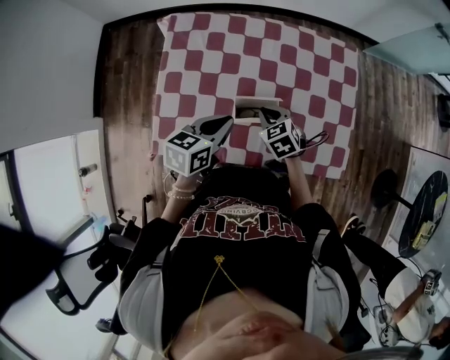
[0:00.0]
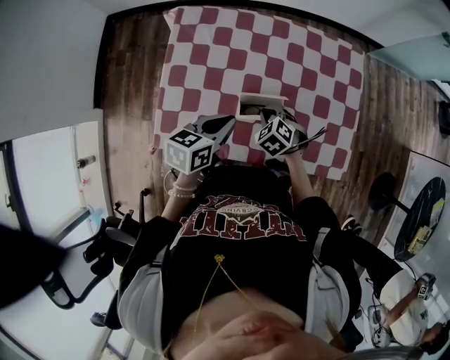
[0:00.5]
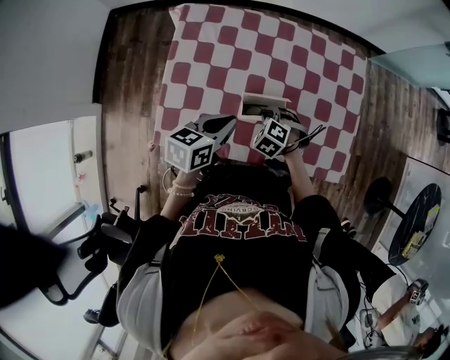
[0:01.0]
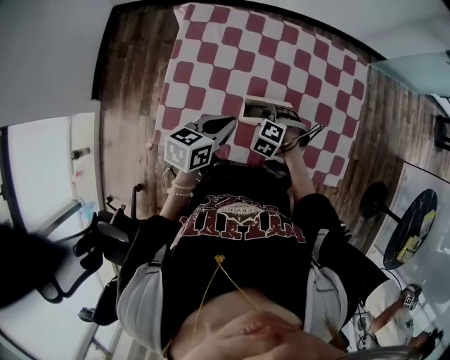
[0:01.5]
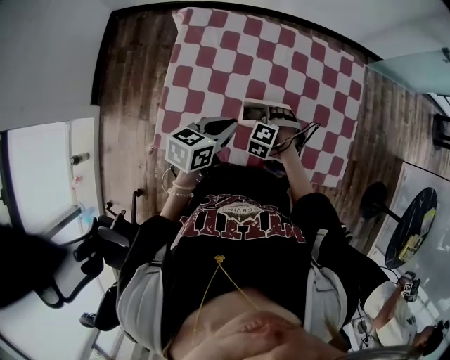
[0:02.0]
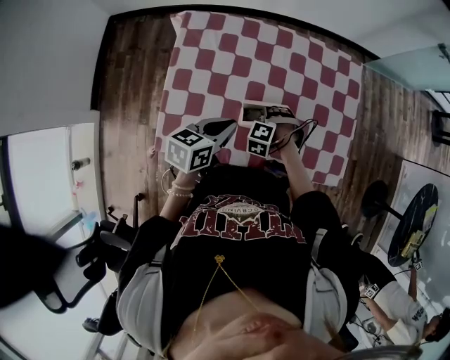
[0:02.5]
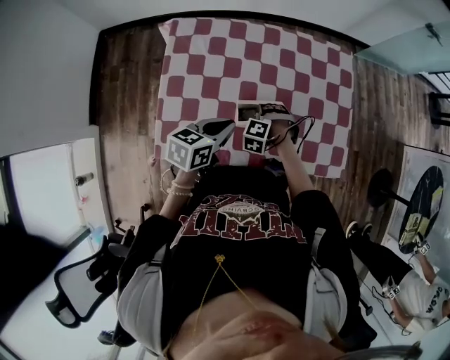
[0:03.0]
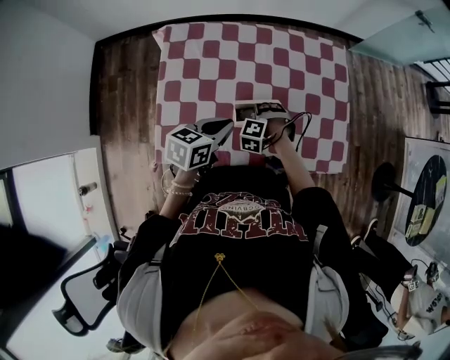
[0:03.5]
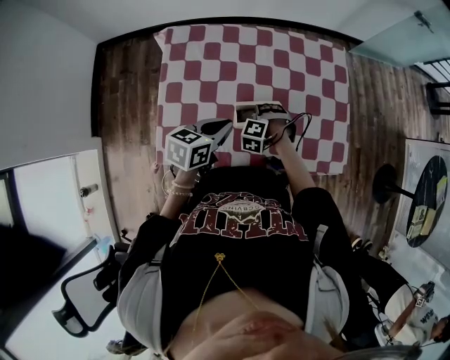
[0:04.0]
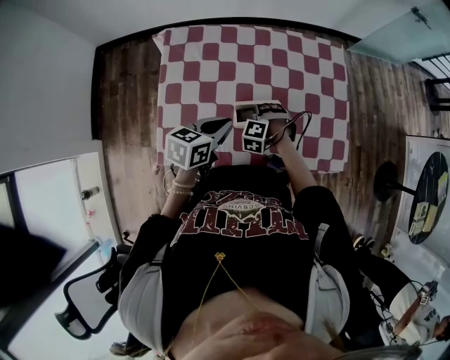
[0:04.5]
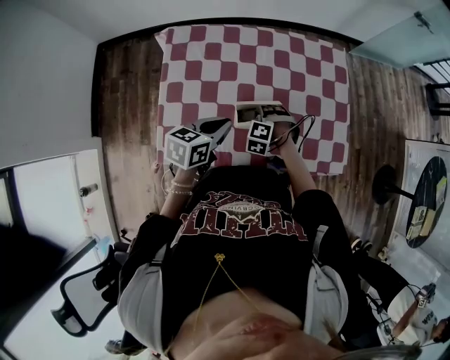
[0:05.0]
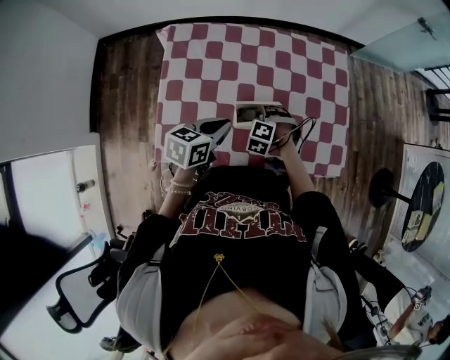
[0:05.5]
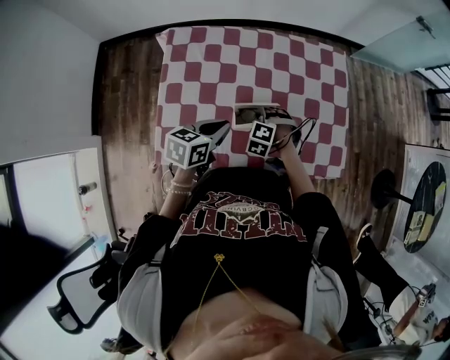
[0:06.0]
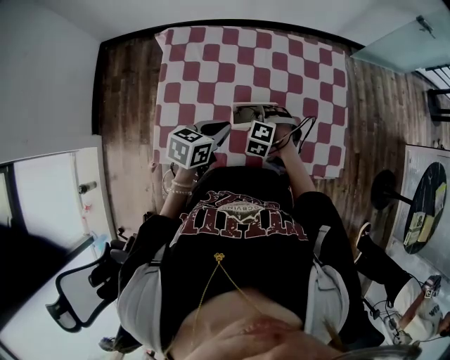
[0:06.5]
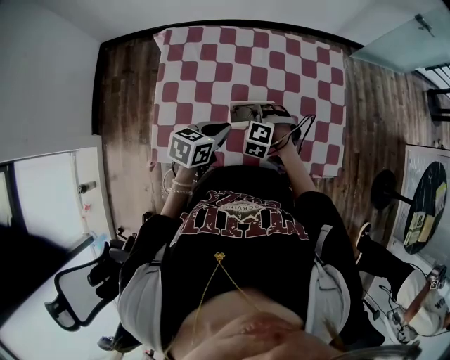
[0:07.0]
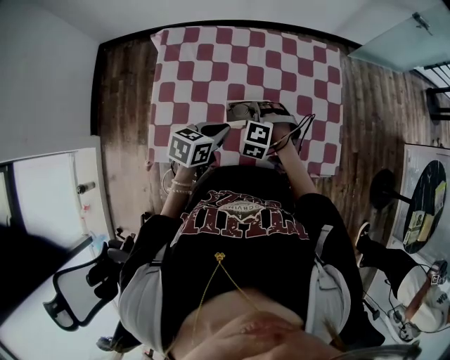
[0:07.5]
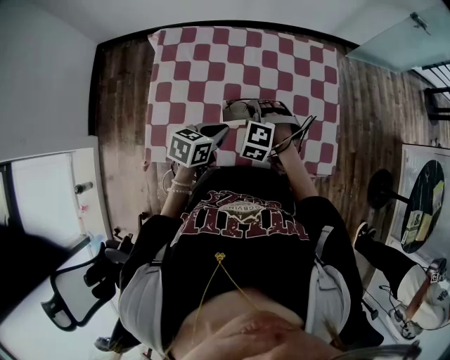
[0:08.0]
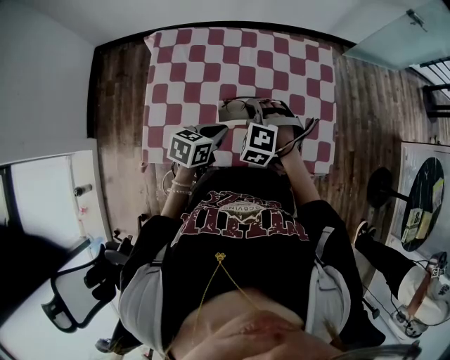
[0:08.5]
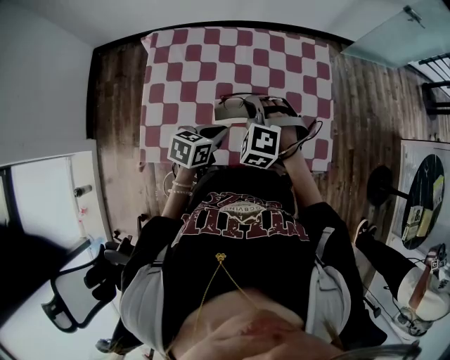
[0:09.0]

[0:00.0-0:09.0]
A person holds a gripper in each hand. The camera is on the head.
0:00.0 to 0:02.0: The right gripper shifts approximately 5 cm downward, and rolls counterclockwise, seen from behind, by approximately 50 degrees.
0:02.0 to 0:04.5: The grippers move only a little.
0:04.5 to 0:07.0: The right gripper travels upward by about 5 cm.
0:07.0 to 0:09.0: The left gripper shifts by roughly 5 cm. Meanwhile the right gripper goes approximately 15 cm upward.

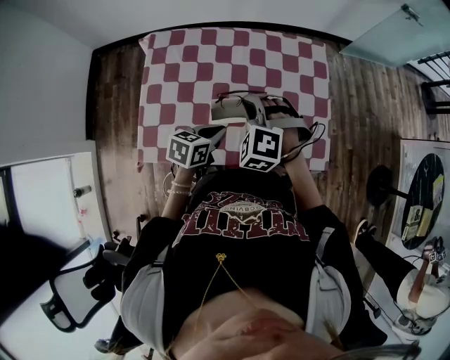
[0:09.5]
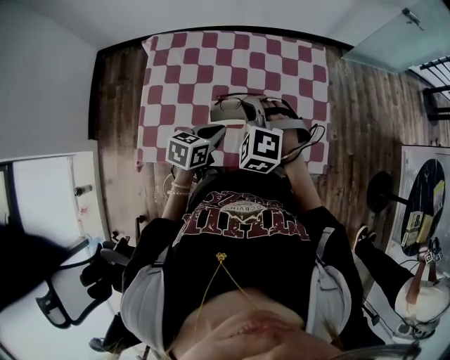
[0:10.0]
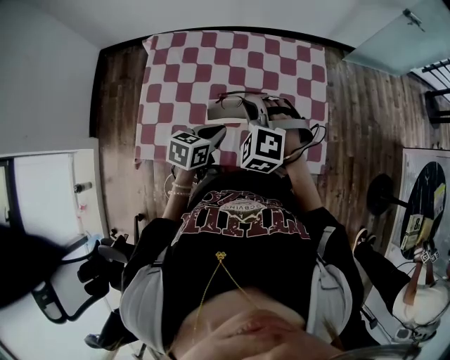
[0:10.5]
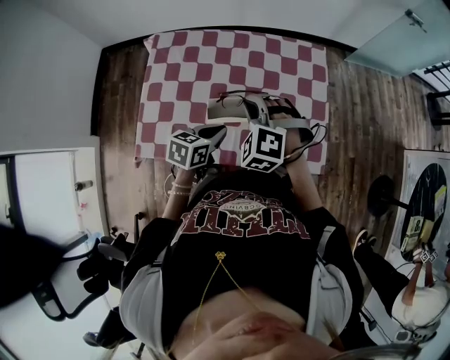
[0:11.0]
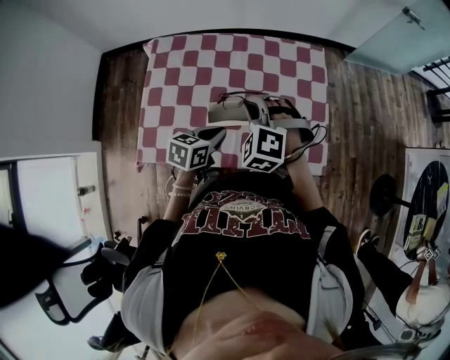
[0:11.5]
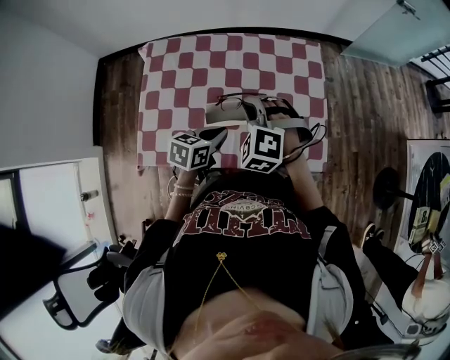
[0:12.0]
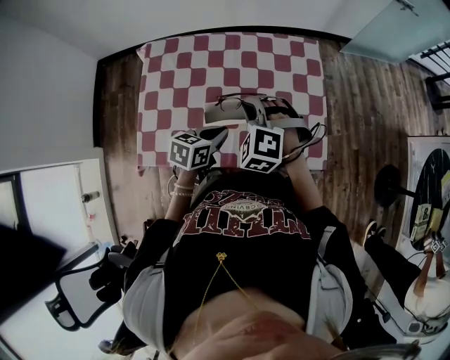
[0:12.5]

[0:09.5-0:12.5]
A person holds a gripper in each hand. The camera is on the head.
0:09.5 to 0:12.5: There are only small adjustments of the grippers.

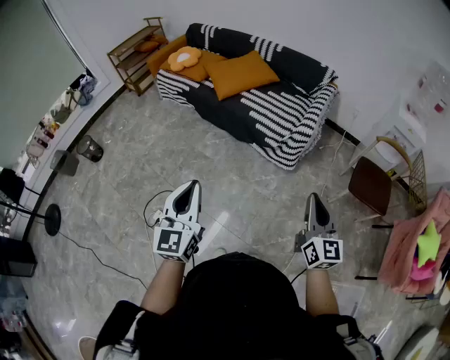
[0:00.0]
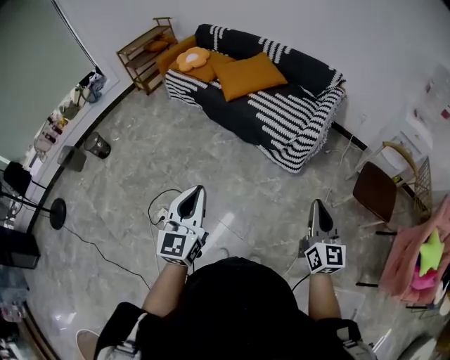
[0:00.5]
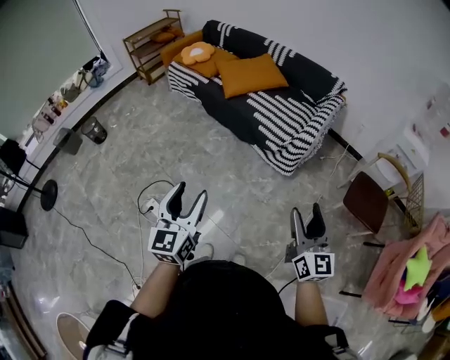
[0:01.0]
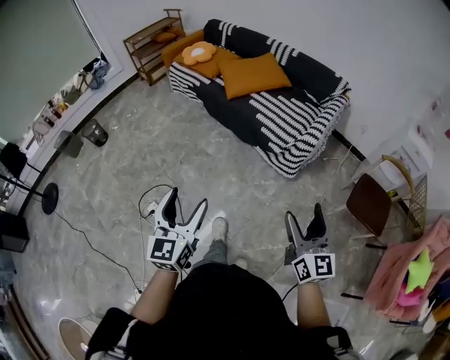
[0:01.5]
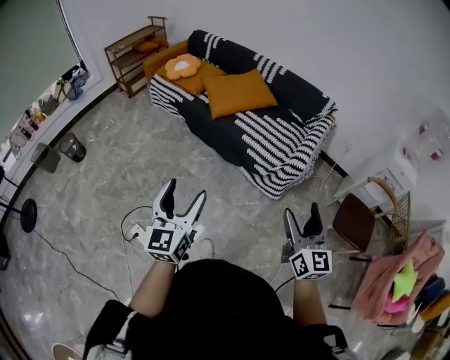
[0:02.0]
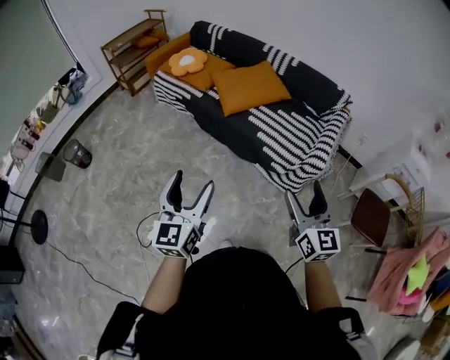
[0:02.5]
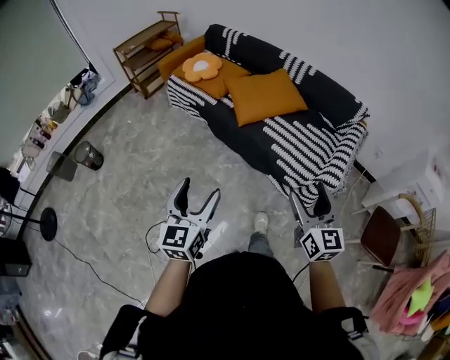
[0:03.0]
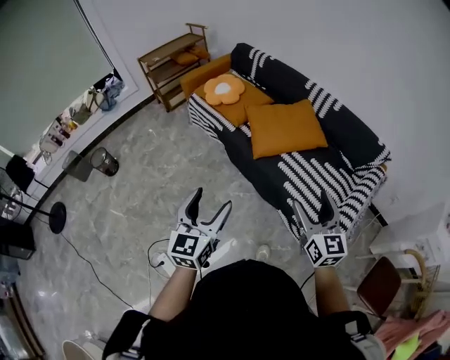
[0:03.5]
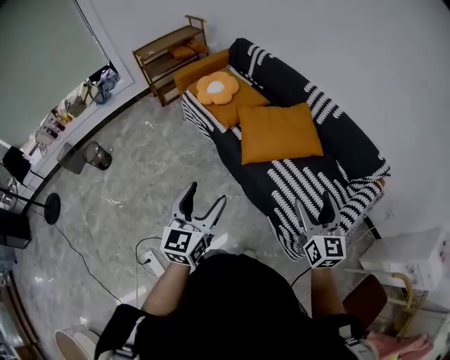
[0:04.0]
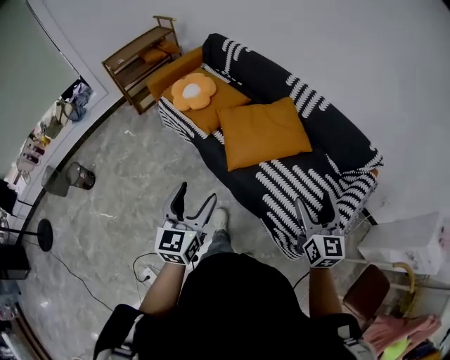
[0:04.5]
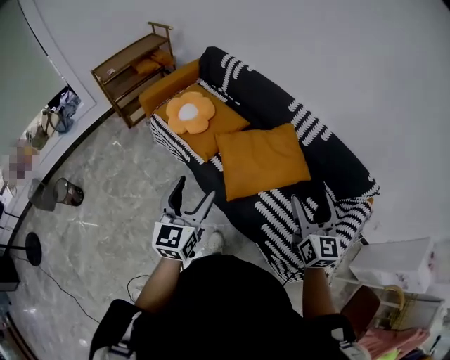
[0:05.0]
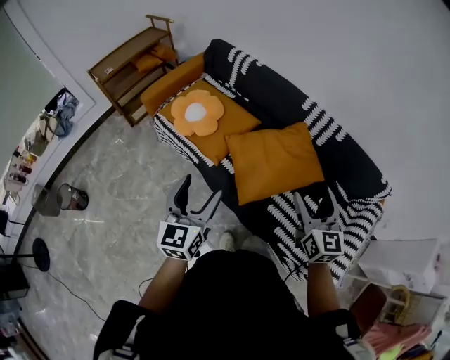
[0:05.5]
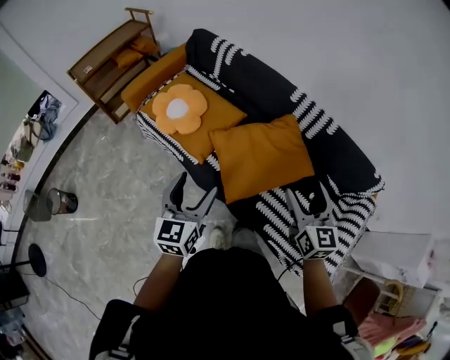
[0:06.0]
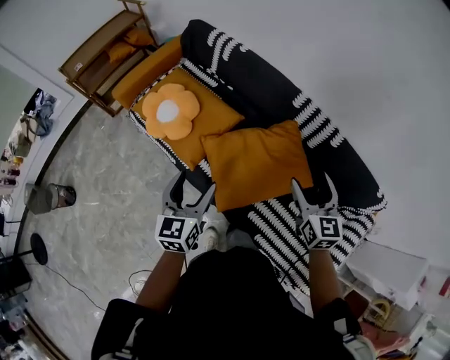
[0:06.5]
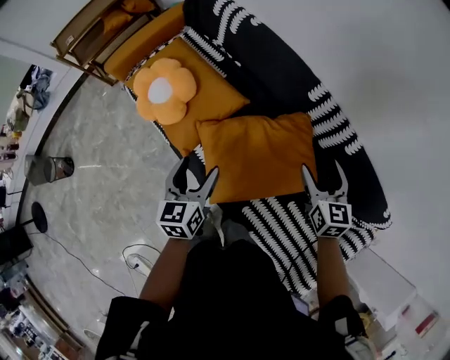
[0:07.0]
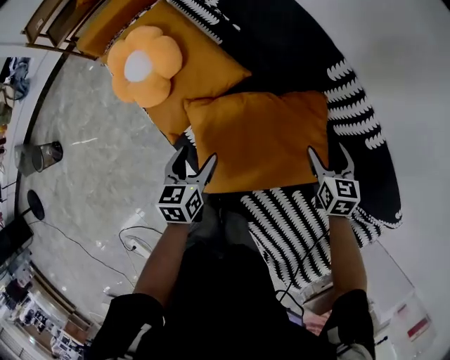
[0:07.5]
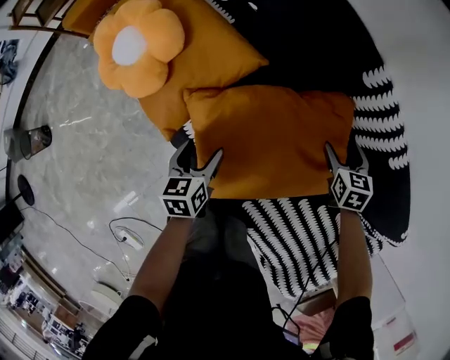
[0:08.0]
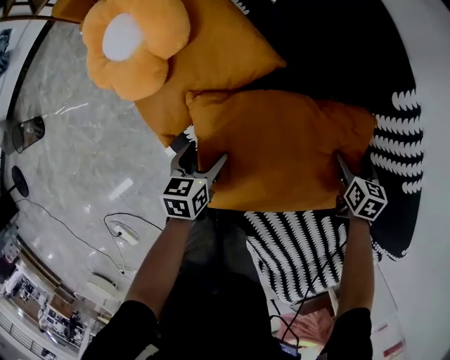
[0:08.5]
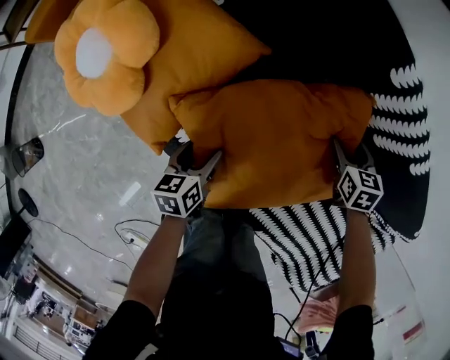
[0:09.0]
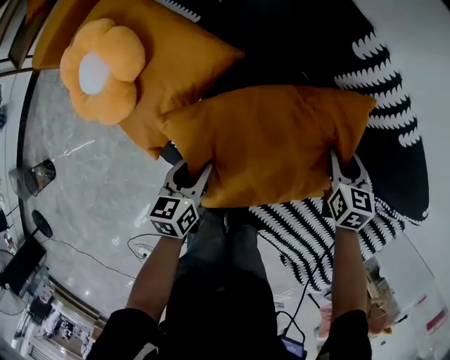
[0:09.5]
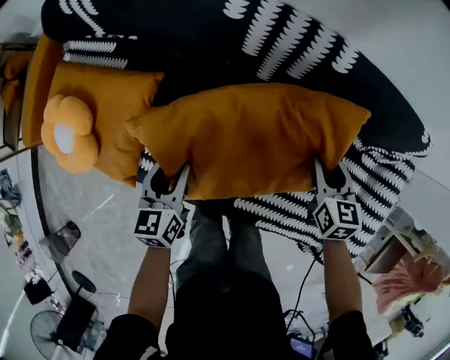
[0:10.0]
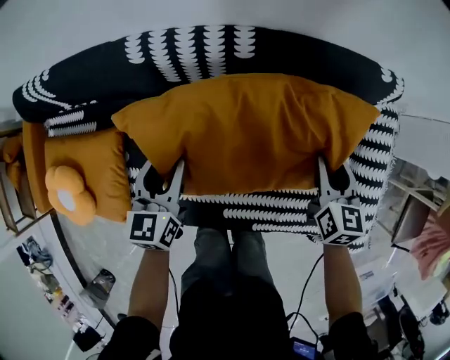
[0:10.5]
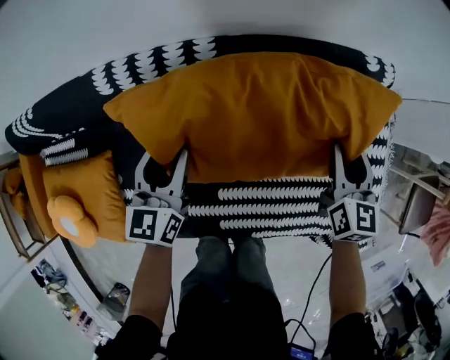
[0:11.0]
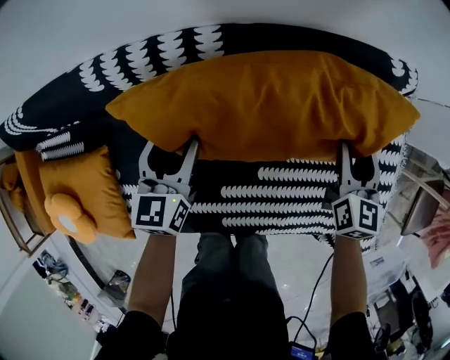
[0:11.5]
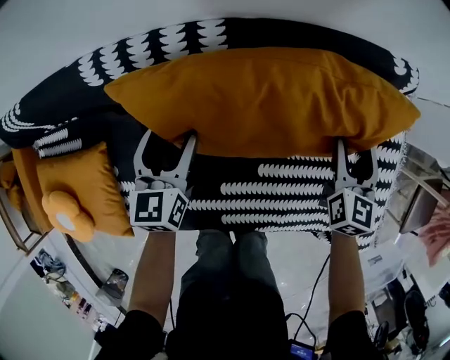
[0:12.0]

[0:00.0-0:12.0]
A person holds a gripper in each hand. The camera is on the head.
0:00.0 to 0:02.0: Both grippers move forward, some 10 cm. The right gripper opens its fingers, while the left gripper opens.
0:02.0 to 0:04.0: The two grippers go roughly 40 cm forward.
0:04.0 to 0:06.0: Both grippers travel together forward, about 30 cm.
0:06.0 to 0:08.0: The left gripper goes about 40 cm downward and forward, and tilts its fingers approximately 30 degrees downward. The right gripper moves downward, forward and to the right, some 50 cm, and tilts its fingers approximately 40 degrees downward.
0:08.0 to 0:10.0: The right gripper heads backward and to the right, covering about 20 cm, turns by approximately 40 degrees, and closes up. The left gripper goes about 15 cm to the right and upward, changes its angle by about 30 degrees, and closes up.
0:10.0 to 0:12.0: The left gripper moves roughly 30 cm, changes its angle by approximately 30 degrees, and opens, while the right gripper moves some 25 cm, and changes its angle by roughly 40 degrees.

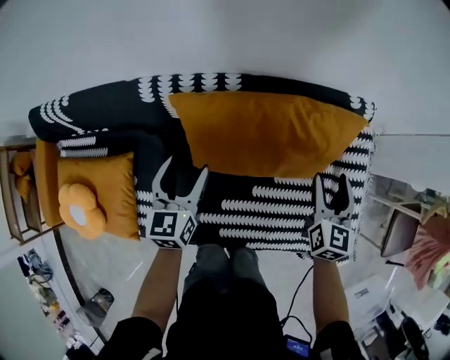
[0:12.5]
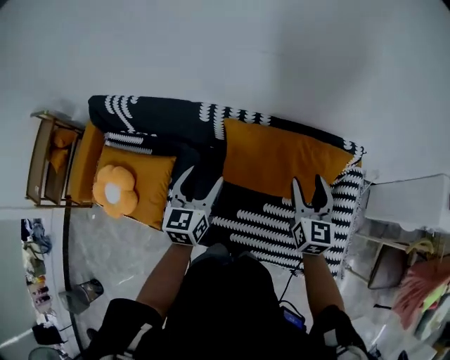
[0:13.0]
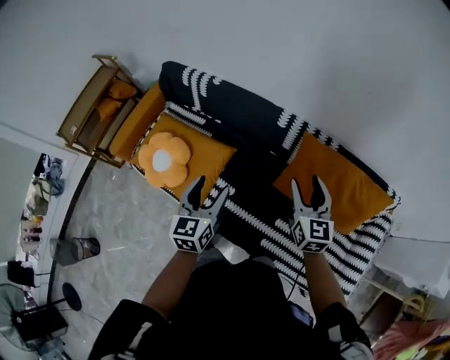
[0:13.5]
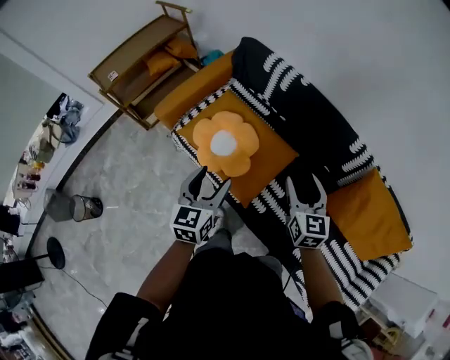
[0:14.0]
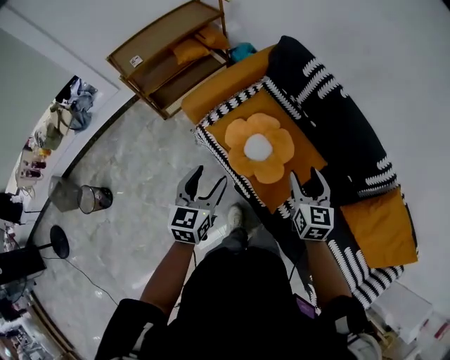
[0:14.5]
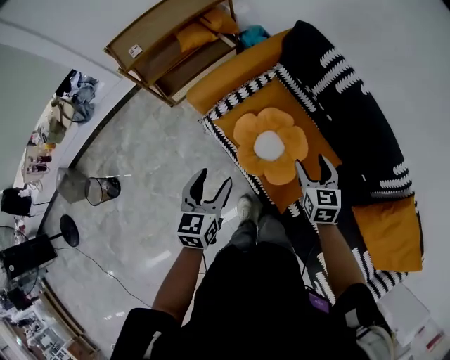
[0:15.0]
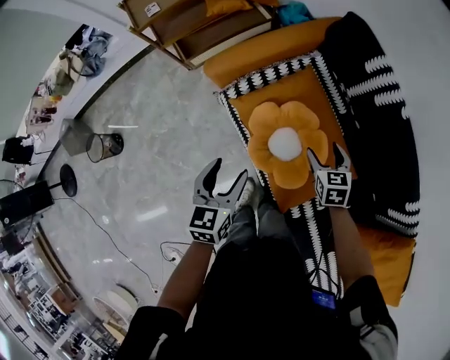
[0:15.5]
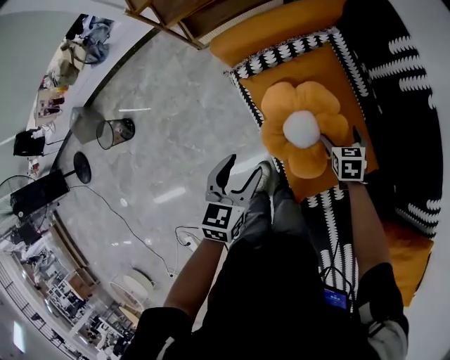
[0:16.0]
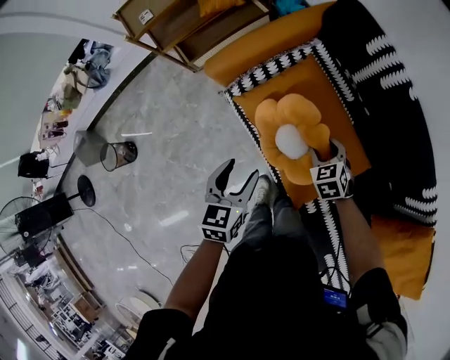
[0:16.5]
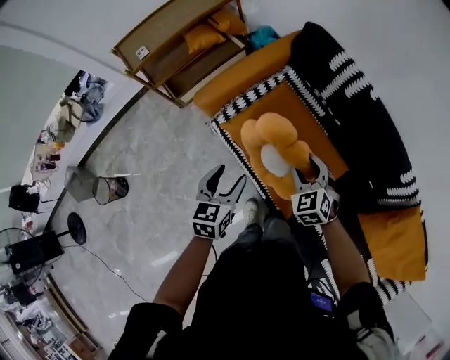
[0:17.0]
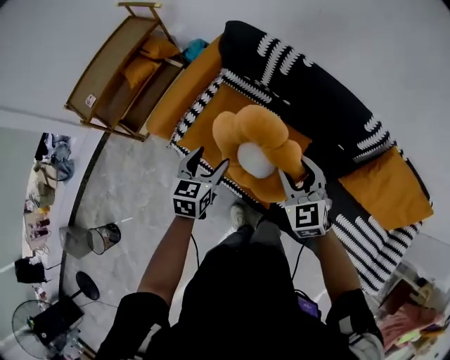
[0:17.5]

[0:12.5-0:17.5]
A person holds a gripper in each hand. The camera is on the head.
0:12.5 to 0:15.0: The two grippers travel together, about 80 cm. The right gripper turns by about 70 degrees, while the left gripper changes its angle by roughly 50 degrees.
0:15.0 to 0:17.5: The left gripper reaches some 10 cm downward, then returns, and changes its angle by about 30 degrees, while the right gripper moves roughly 20 cm downward and comes back, and swivels roughly 20 degrees.
